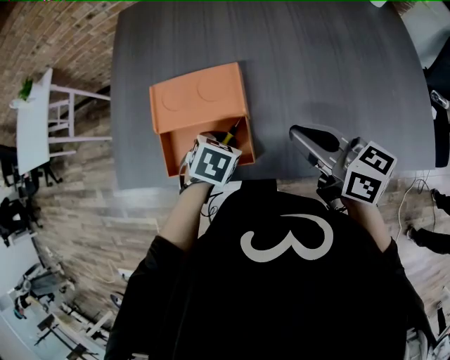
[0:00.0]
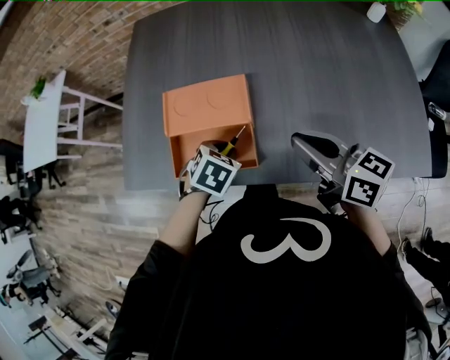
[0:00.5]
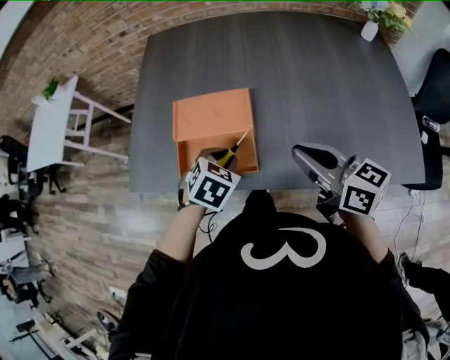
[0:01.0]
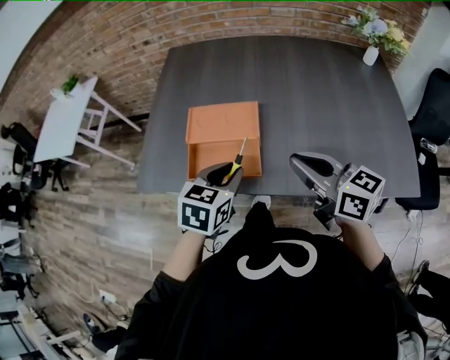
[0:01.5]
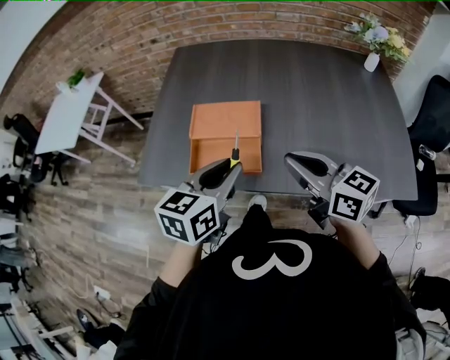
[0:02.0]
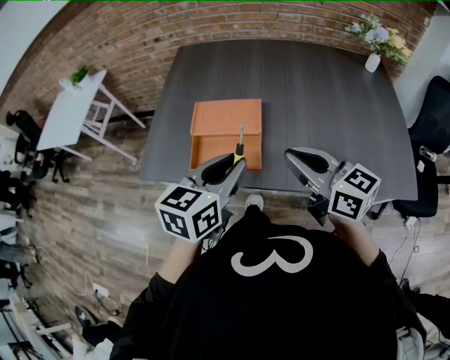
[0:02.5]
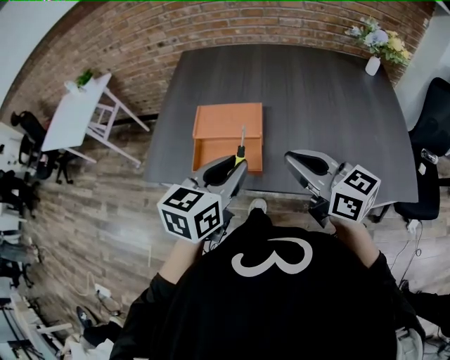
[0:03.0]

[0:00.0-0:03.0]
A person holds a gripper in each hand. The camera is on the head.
0.0 to 1.5 s: The right gripper is displaced upward and backward by roughly 10 cm. Meanwhile the left gripper shifts approximately 15 cm upward and backward, and points its fingers some 30 degrees further upward.
1.5 to 3.0 s: The left gripper heads upward, covering approximately 10 cm.

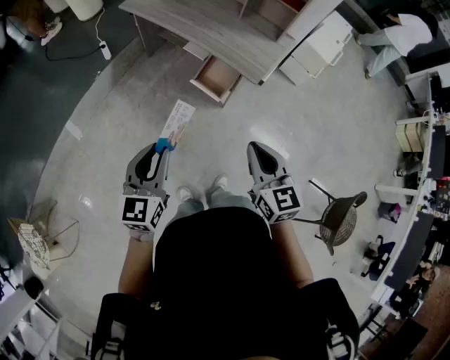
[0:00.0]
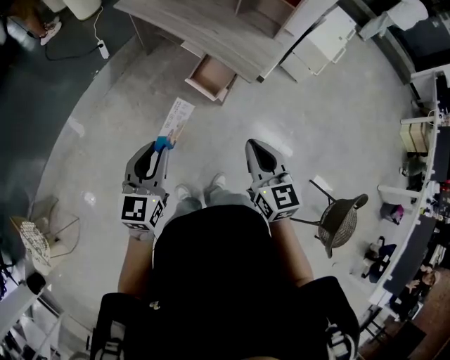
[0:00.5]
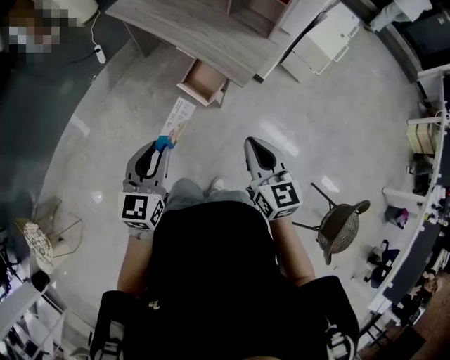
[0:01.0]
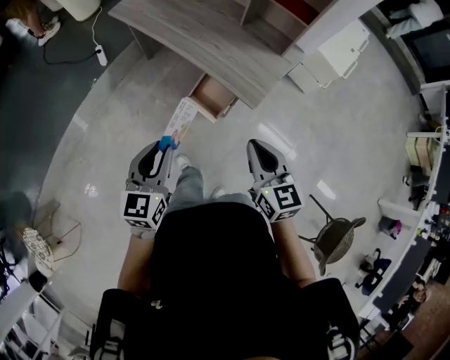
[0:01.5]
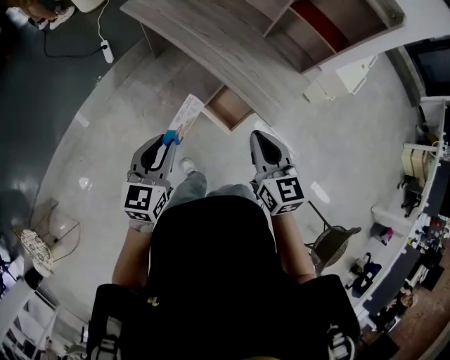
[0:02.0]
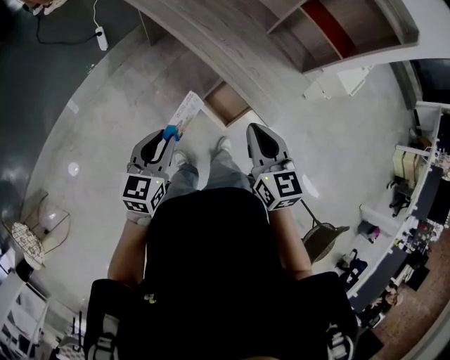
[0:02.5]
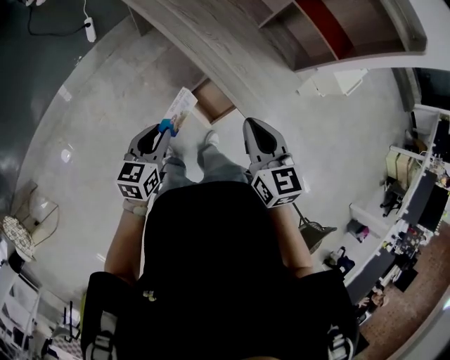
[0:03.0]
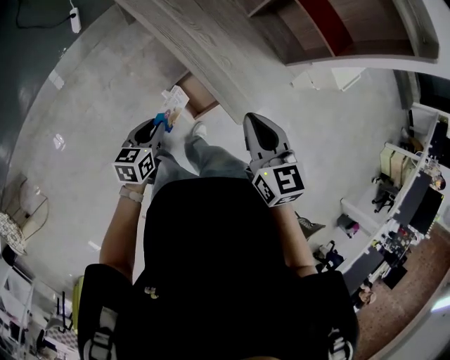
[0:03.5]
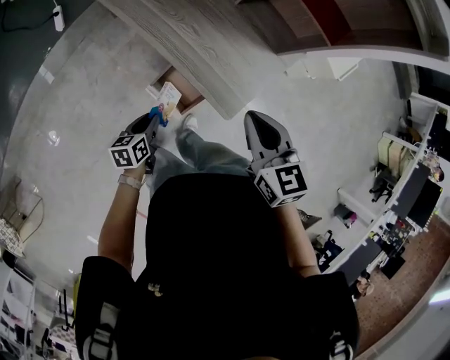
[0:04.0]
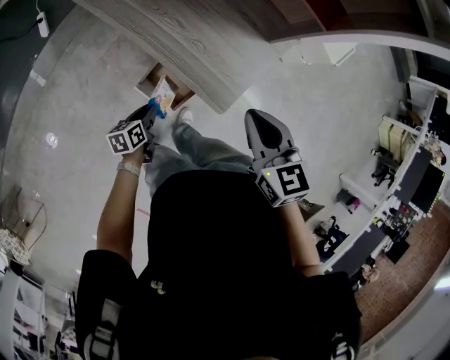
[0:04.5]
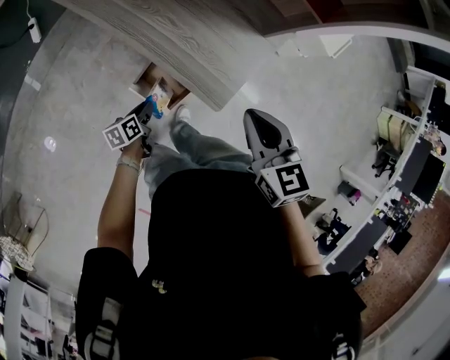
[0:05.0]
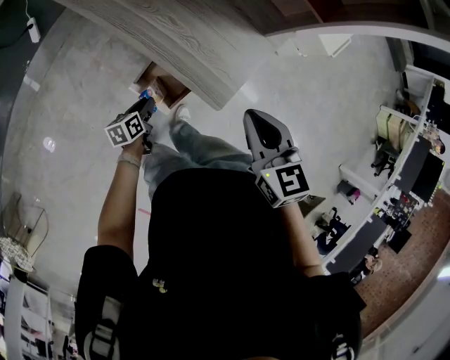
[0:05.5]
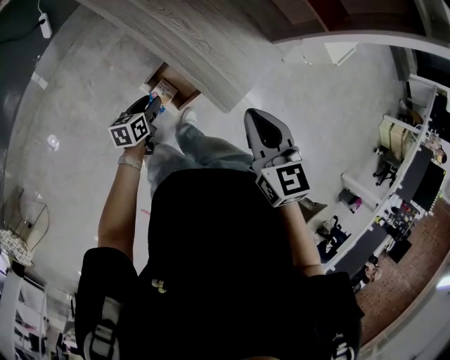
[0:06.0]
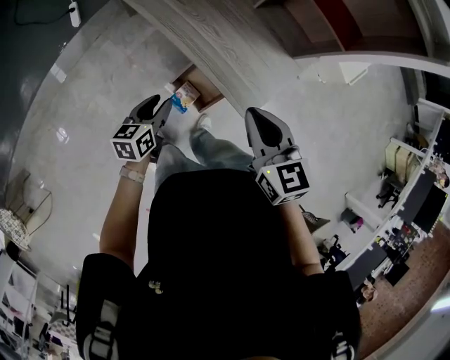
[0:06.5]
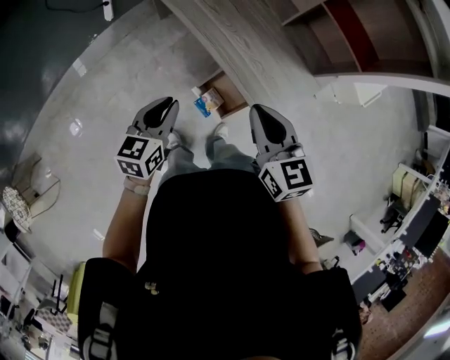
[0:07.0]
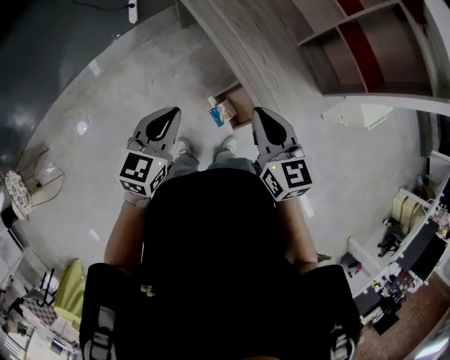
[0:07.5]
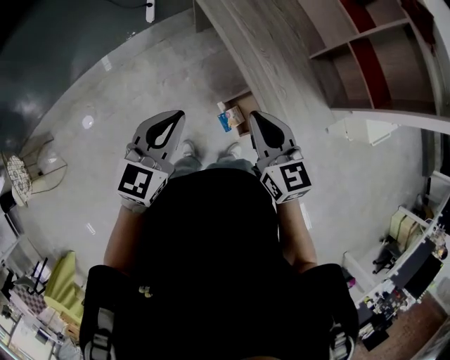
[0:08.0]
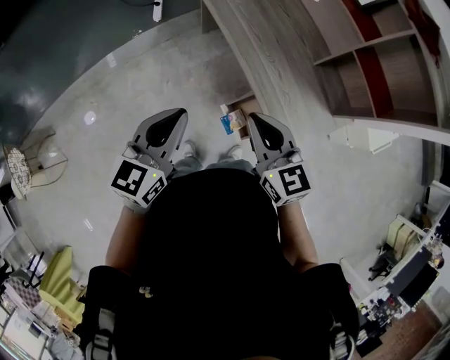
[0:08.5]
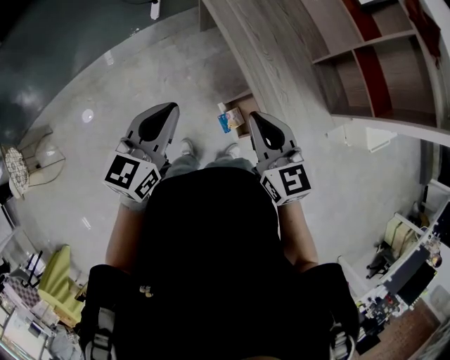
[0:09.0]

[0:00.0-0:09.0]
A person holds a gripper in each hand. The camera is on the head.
0.0 to 2.0 s: The two grippers go roughly 25 cm forward.
2.0 to 4.5 s: The right gripper shifts approximately 20 cm to the right, forward and downward, while the left gripper shifts approximately 35 cm downward and to the right, and rolls counterclockwise, seen from behind, by about 40 degrees.
4.5 to 7.0 s: The right gripper heads to the left, covering about 15 cm. The left gripper heads upward, covering about 25 cm, and changes its angle by approximately 30 degrees.
7.0 to 9.0 s: The left gripper shifts roughly 15 cm upward and to the left. Meanwhile the right gripper moves to the left, about 10 cm.

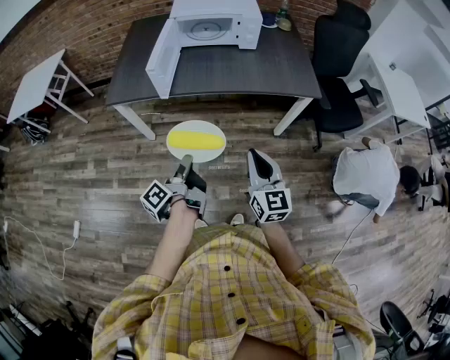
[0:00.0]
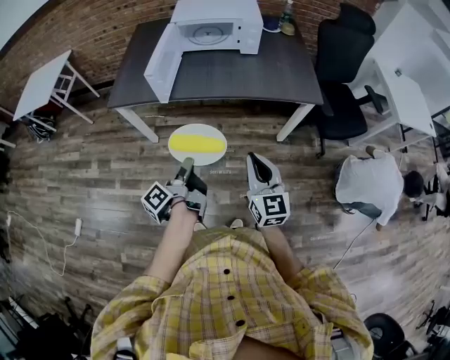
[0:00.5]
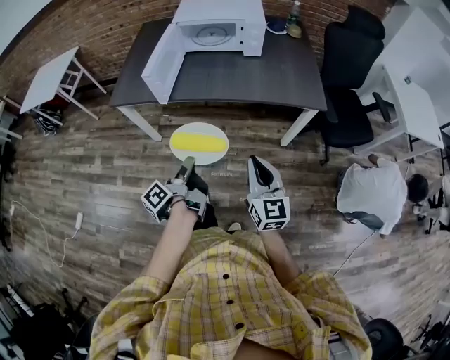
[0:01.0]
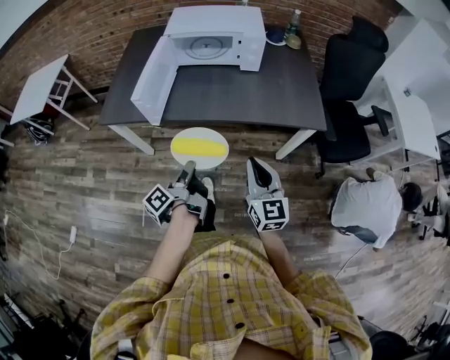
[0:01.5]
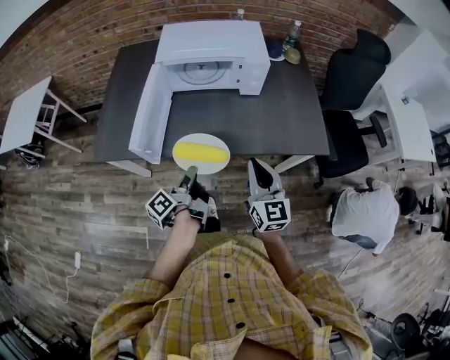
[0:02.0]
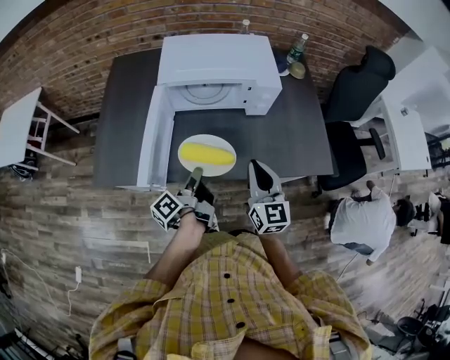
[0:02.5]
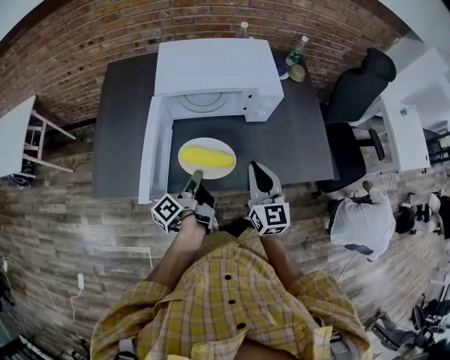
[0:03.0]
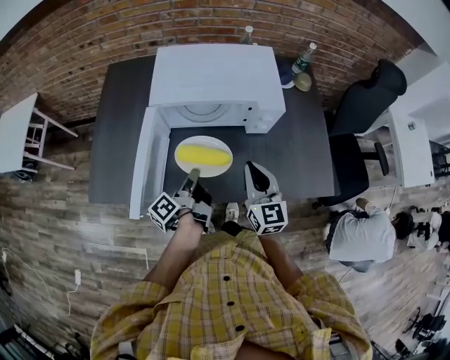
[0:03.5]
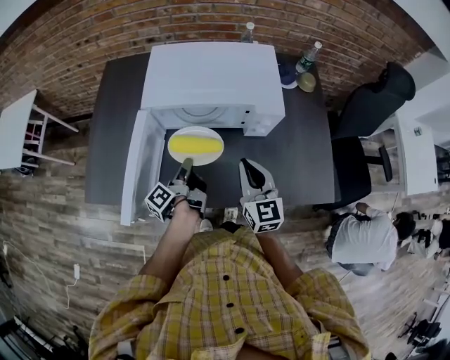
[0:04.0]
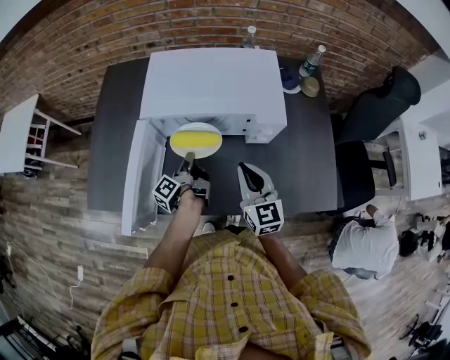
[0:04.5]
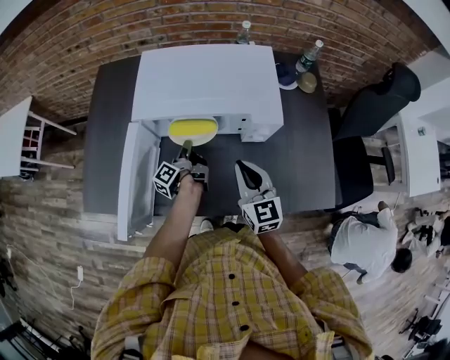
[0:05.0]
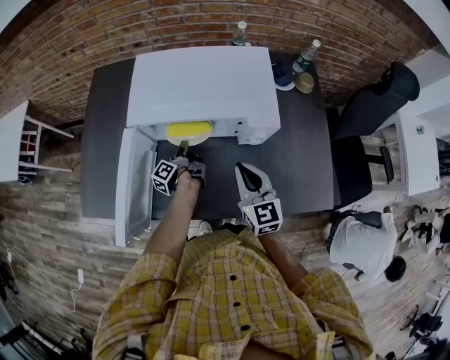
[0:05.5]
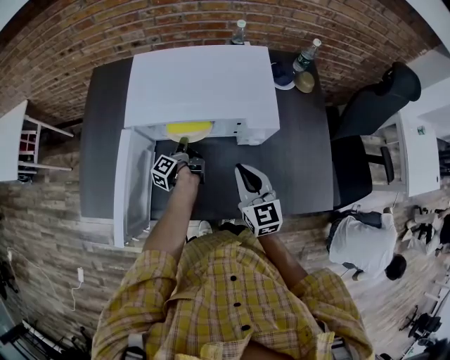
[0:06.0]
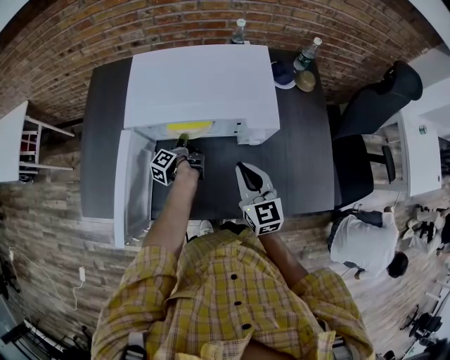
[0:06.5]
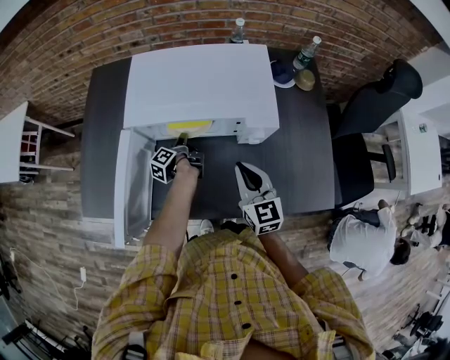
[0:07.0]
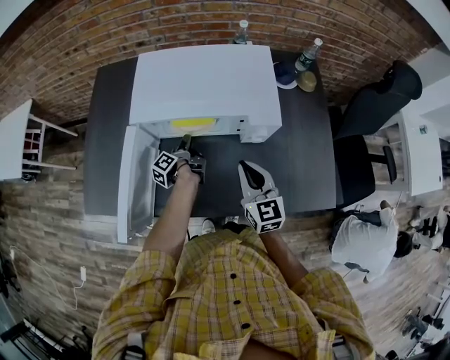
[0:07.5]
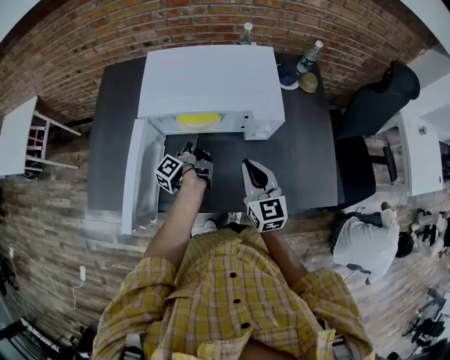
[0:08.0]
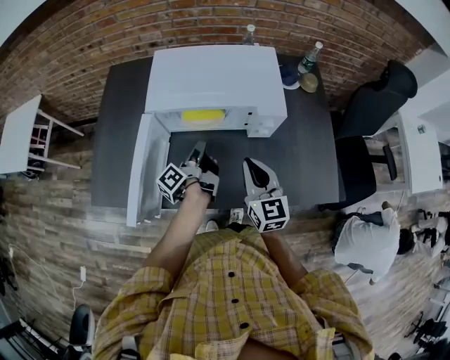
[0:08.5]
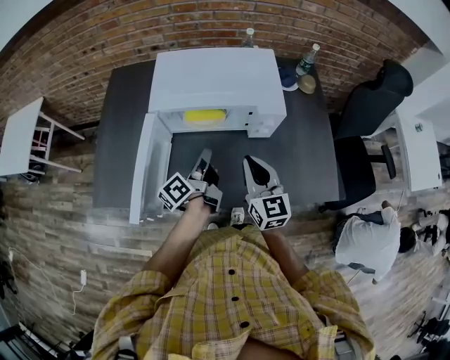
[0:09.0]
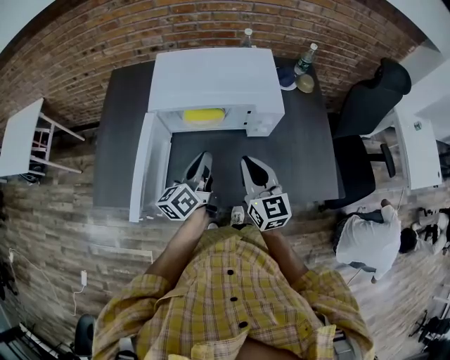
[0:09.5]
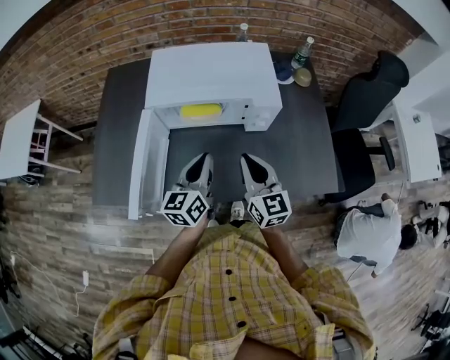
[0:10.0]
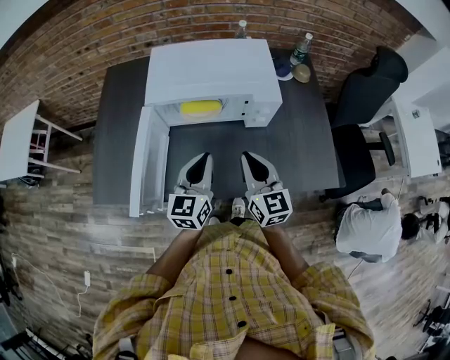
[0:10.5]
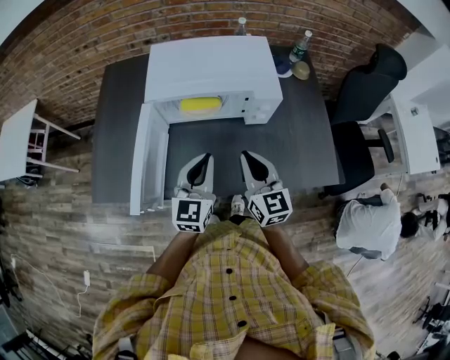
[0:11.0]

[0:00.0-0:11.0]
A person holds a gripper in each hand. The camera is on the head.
0.0 to 2.0 s: The right gripper shifts by about 30 cm.
2.0 to 3.5 s: The right gripper ends up some 20 cm from where it was.
3.5 to 5.5 s: The right gripper ends up some 10 cm from where it was.
7.5 to 9.0 s: The right gripper travels upward by about 5 cm.

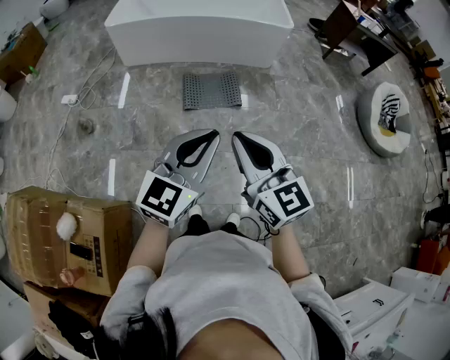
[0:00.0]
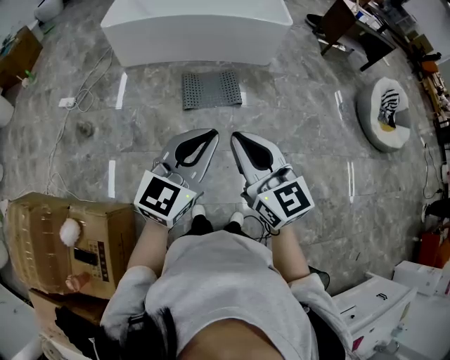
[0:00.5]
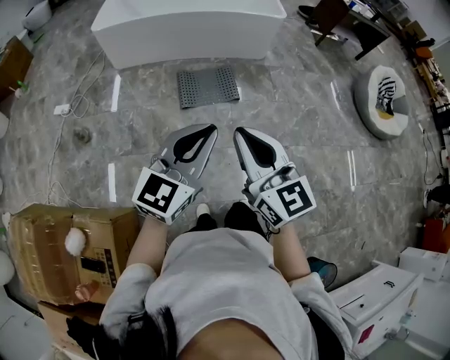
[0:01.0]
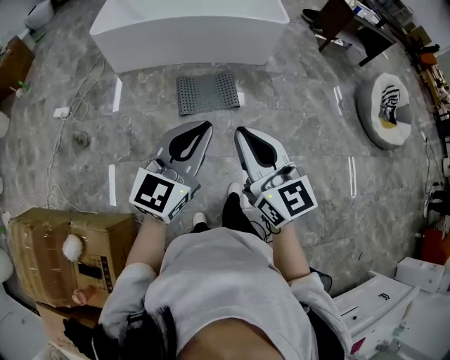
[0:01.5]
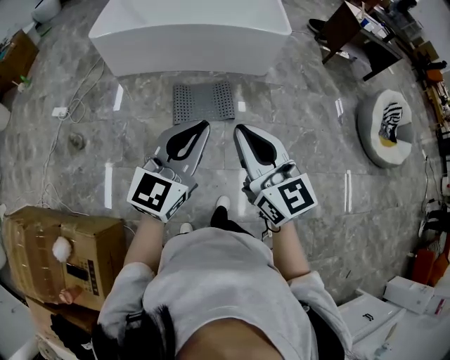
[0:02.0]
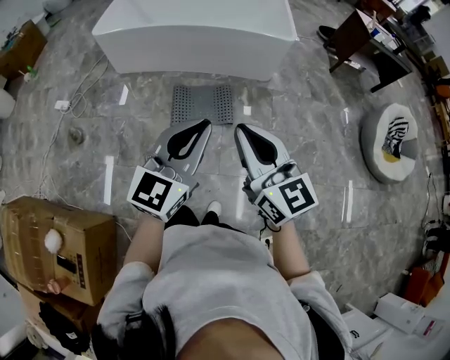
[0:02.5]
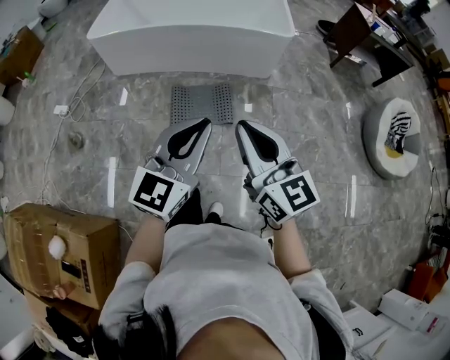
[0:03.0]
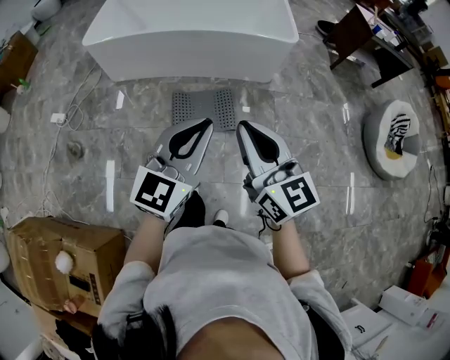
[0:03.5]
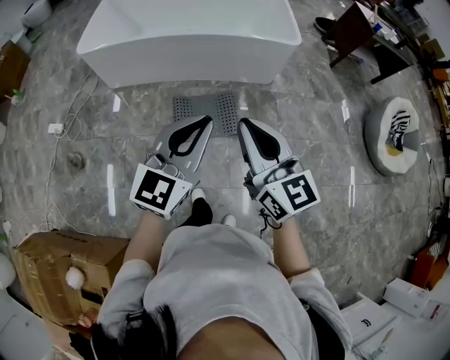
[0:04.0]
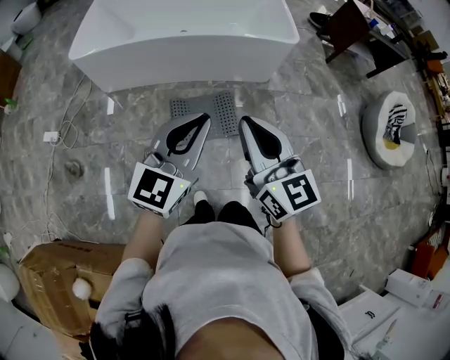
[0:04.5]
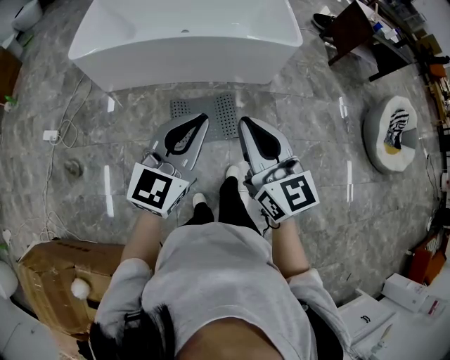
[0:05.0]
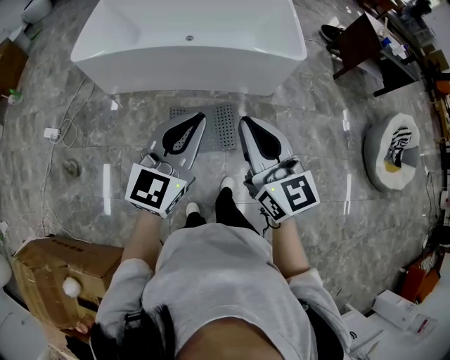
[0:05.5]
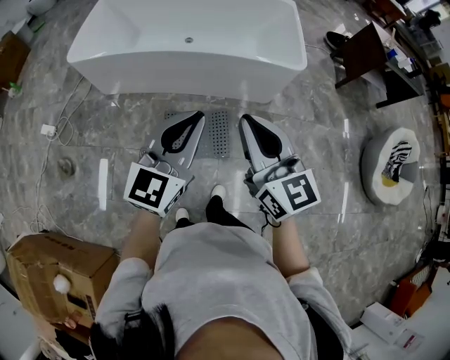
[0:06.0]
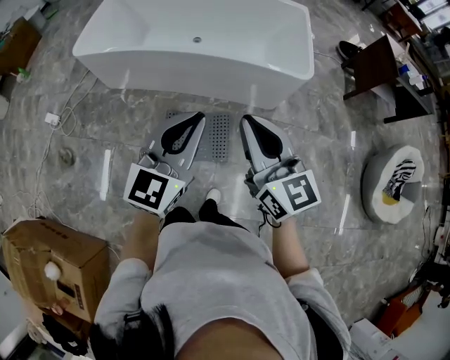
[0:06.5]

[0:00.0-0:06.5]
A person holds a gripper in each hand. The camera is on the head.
0.0 to 2.0 s: Both grippers travel together forward, about 20 cm.
2.0 to 4.5 s: Both grippers move forward, roughly 30 cm.
4.5 to 6.5 s: The two grippers go roughly 25 cm forward and to the right.
